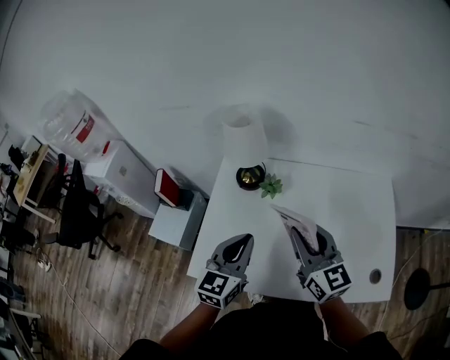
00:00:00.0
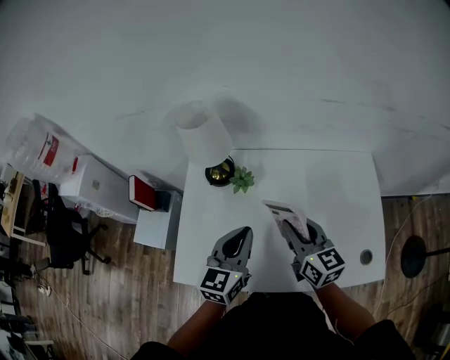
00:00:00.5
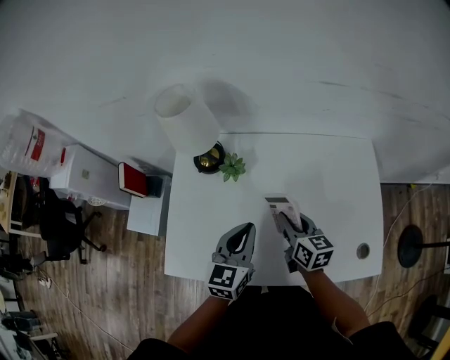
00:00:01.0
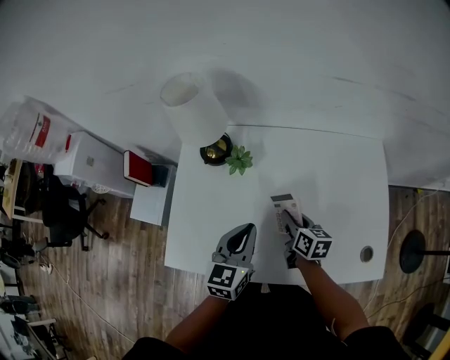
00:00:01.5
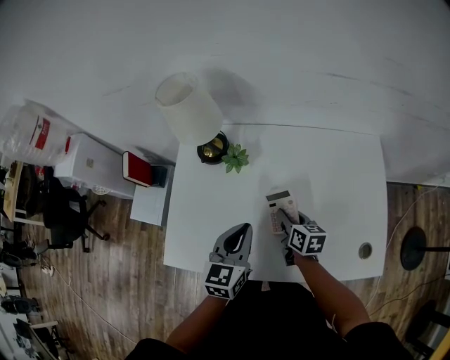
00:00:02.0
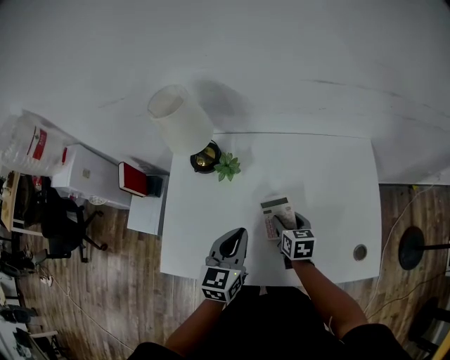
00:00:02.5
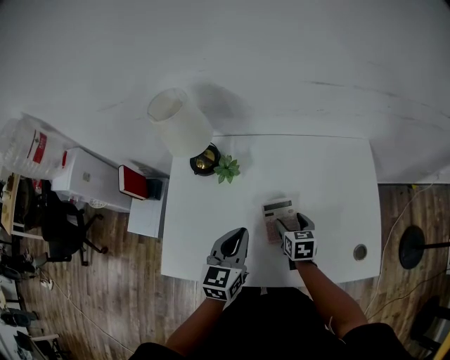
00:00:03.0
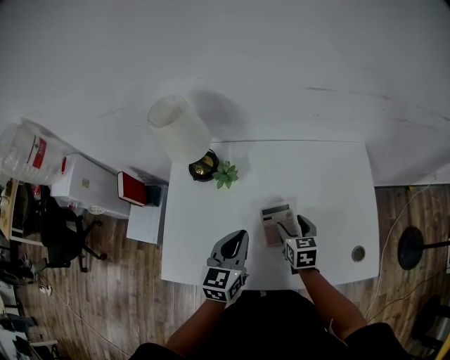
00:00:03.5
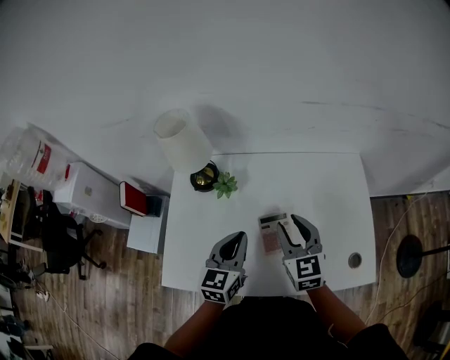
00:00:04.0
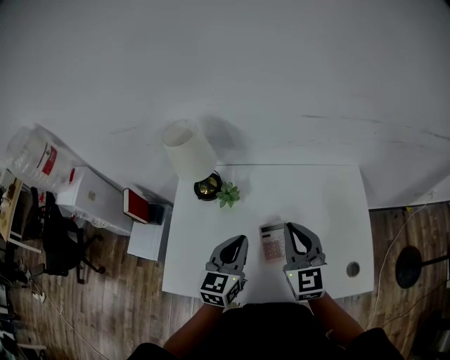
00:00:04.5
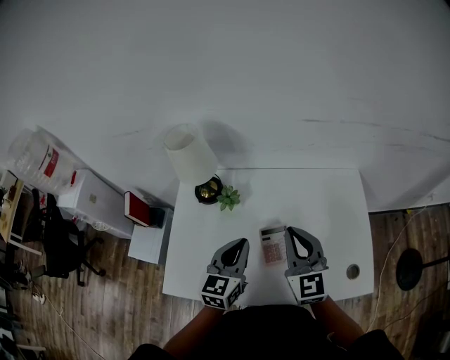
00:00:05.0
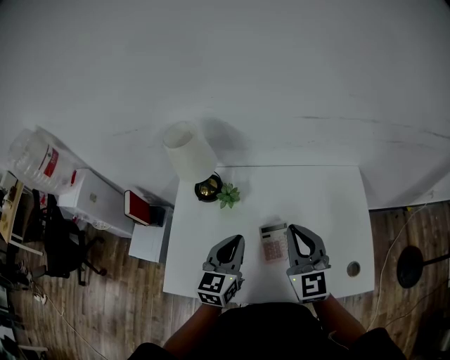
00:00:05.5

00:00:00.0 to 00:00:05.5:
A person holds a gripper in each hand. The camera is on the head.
00:00:00.0 to 00:00:02.0: The left gripper shifts about 15 cm to the right and downward. The right gripper shifts approximately 25 cm downward, and points its fingers approximately 30 degrees further downward.
00:00:02.0 to 00:00:03.5: The right gripper shifts by approximately 5 cm, rotates approximately 20 degrees, and opens up.
00:00:03.5 to 00:00:05.5: The left gripper is displaced upward by some 5 cm. Meanwhile the right gripper heads upward, covering some 25 cm, points its fingers approximately 40 degrees further upward, and closes.

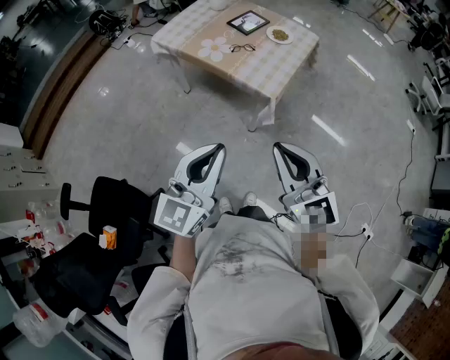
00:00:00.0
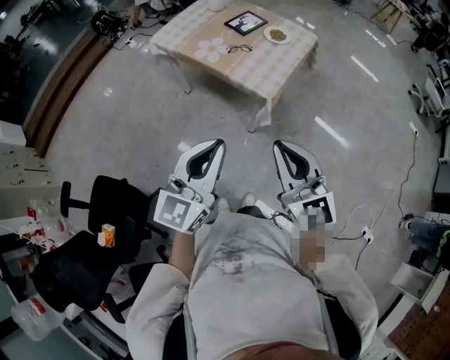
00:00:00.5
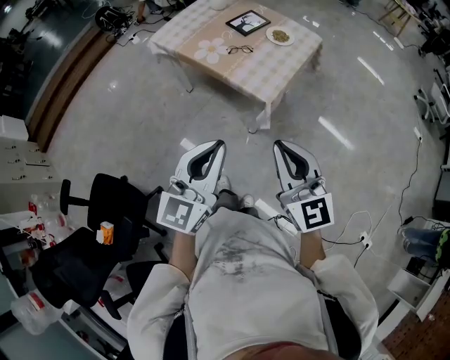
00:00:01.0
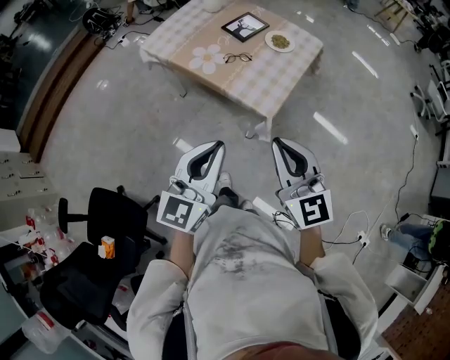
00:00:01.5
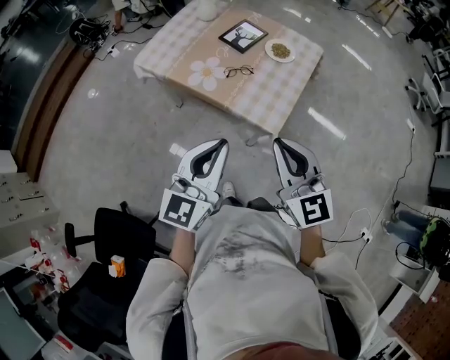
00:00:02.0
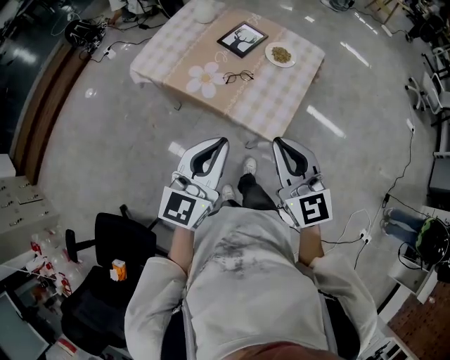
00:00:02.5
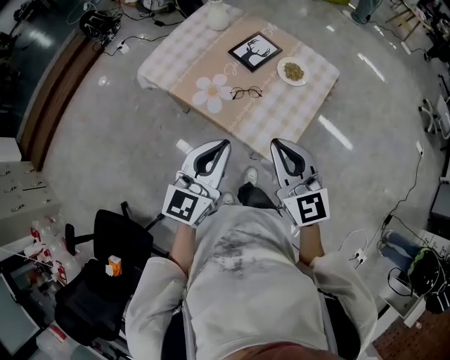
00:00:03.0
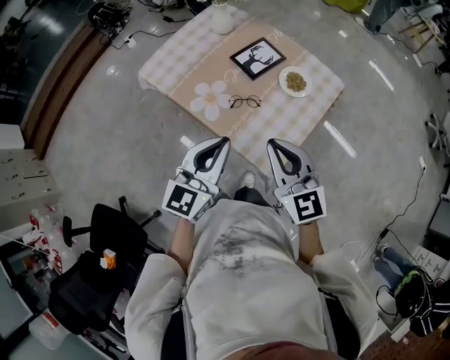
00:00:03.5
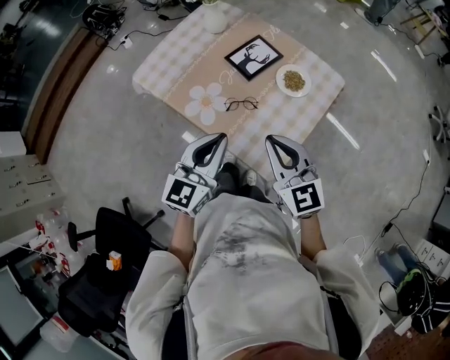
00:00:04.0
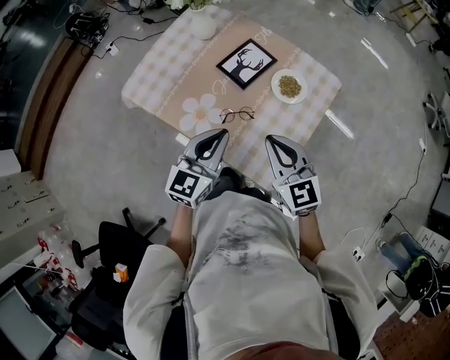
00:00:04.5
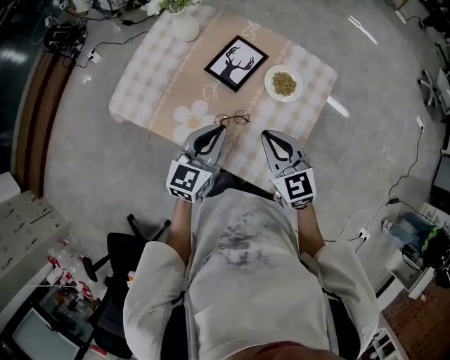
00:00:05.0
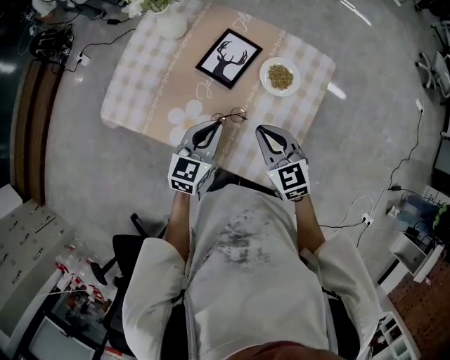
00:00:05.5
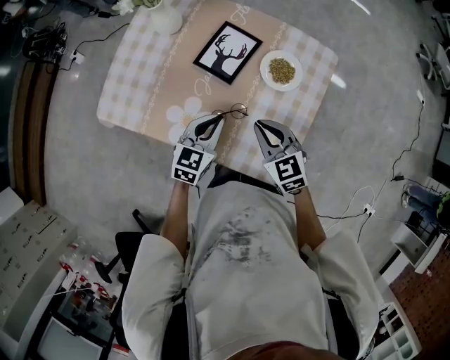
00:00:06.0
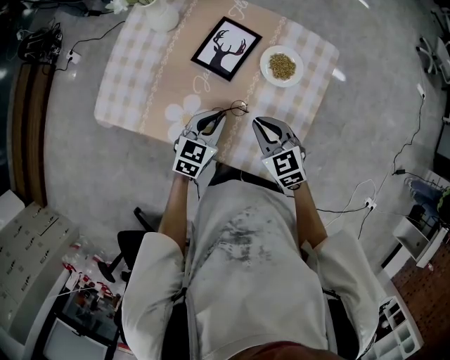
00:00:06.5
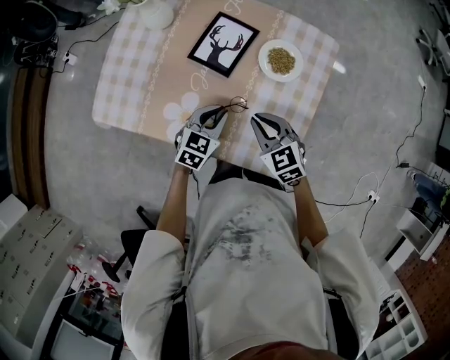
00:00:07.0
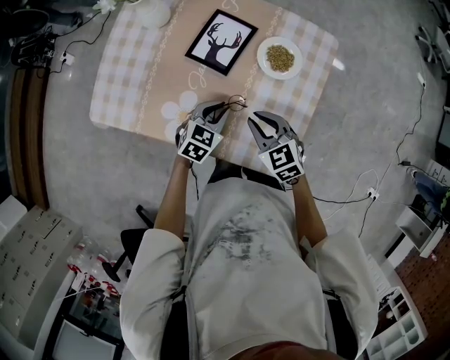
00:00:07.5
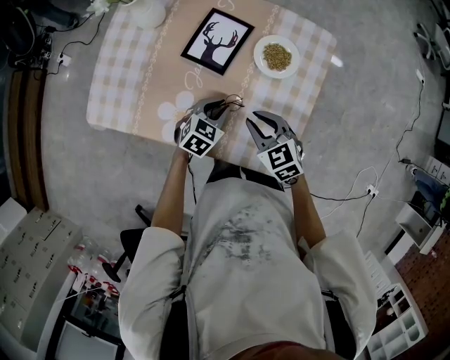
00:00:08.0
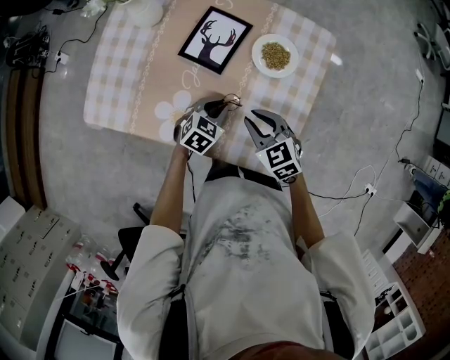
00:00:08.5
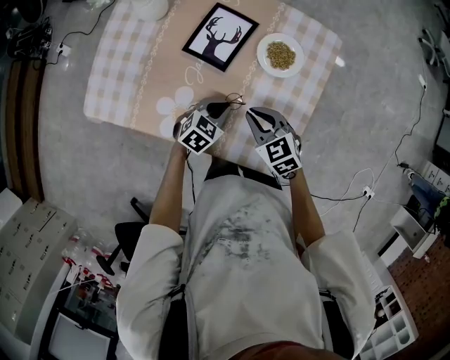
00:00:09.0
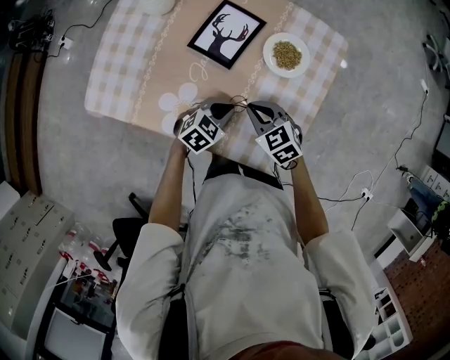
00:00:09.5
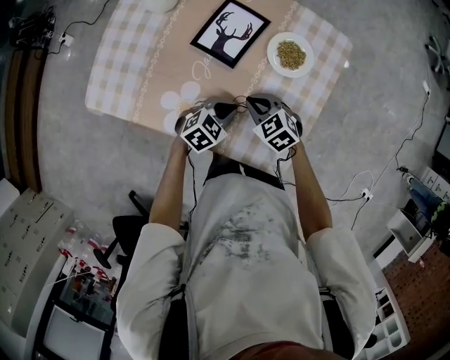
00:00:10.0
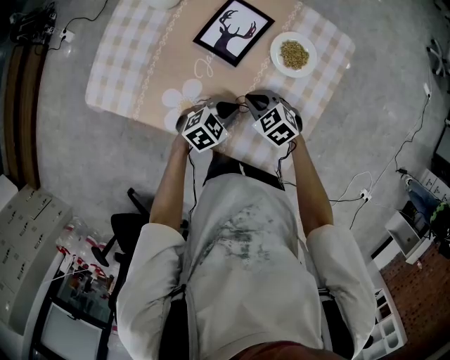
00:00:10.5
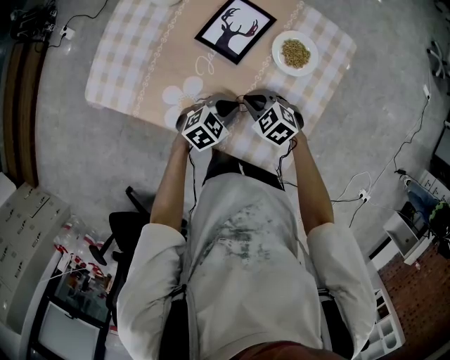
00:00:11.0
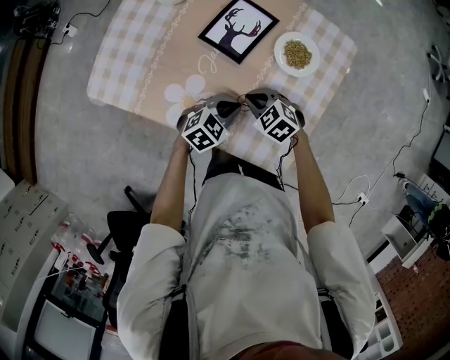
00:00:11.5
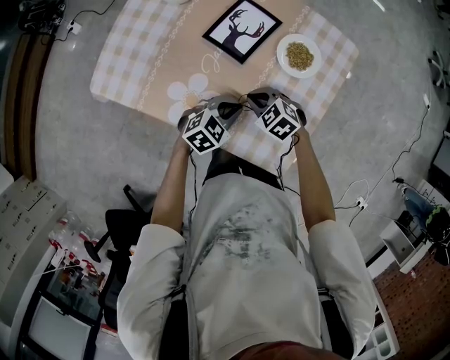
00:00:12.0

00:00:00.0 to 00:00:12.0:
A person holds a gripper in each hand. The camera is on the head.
00:00:00.0 to 00:00:02.0: The grippers both shift forward by about 20 cm.
00:00:02.0 to 00:00:04.0: Both grippers move forward, roughly 20 cm.
00:00:04.0 to 00:00:06.0: Both grippers travel together downward and forward, some 25 cm. The left gripper changes its angle by about 30 degrees. Meanwhile the right gripper swivels approximately 20 degrees.
00:00:06.0 to 00:00:08.0: The left gripper heads downward, covering about 10 cm, and changes its angle by some 20 degrees, while the right gripper heads downward, covering about 5 cm.
00:00:08.0 to 00:00:10.0: The right gripper moves downward, about 5 cm.
00:00:10.0 to 00:00:12.0: The grippers move only a little.

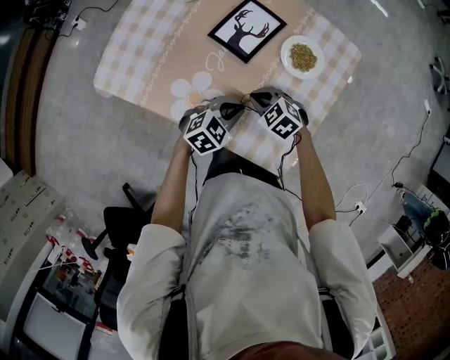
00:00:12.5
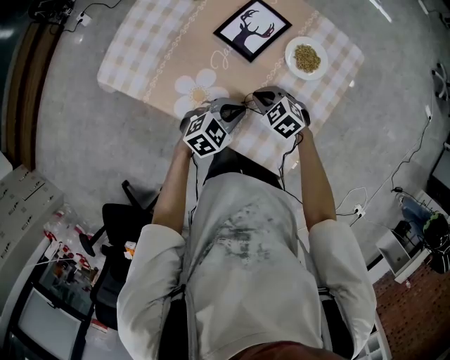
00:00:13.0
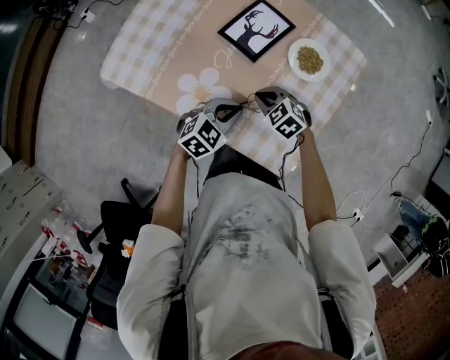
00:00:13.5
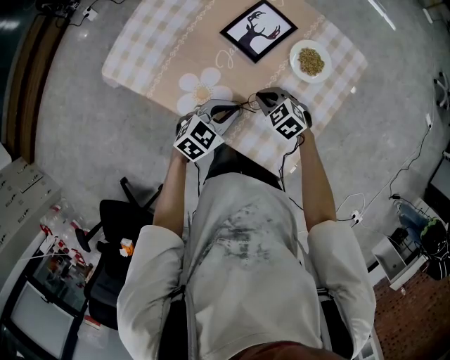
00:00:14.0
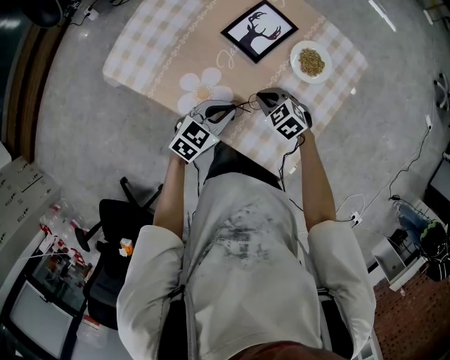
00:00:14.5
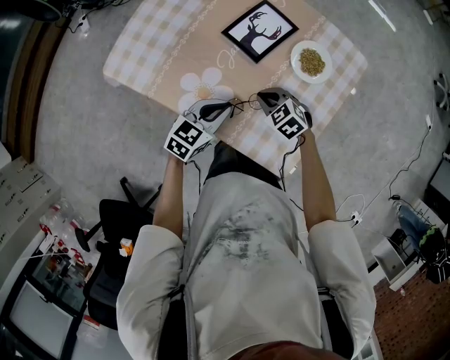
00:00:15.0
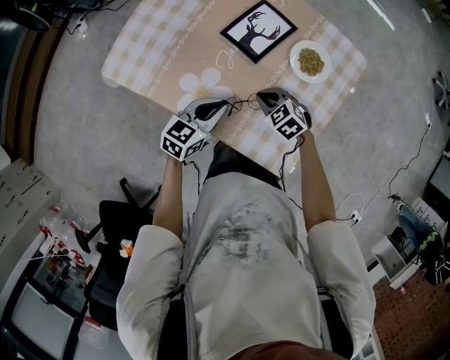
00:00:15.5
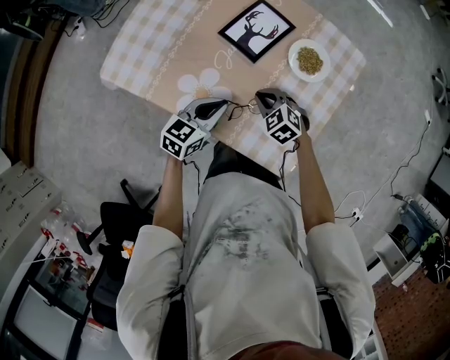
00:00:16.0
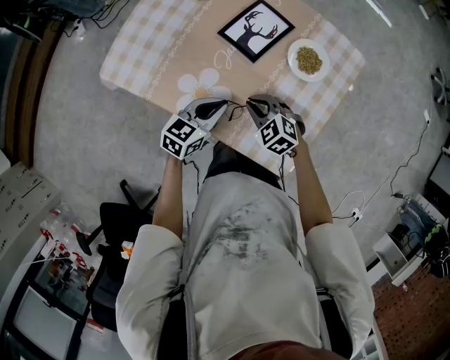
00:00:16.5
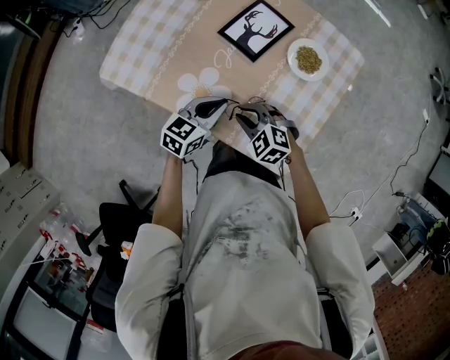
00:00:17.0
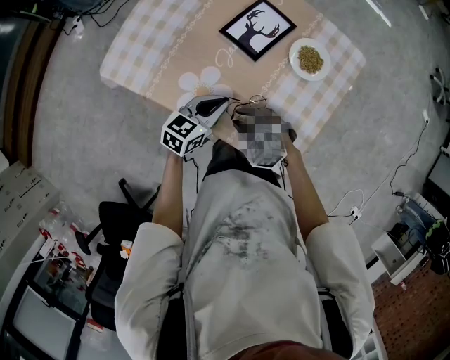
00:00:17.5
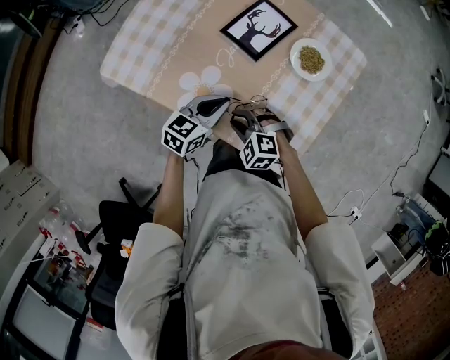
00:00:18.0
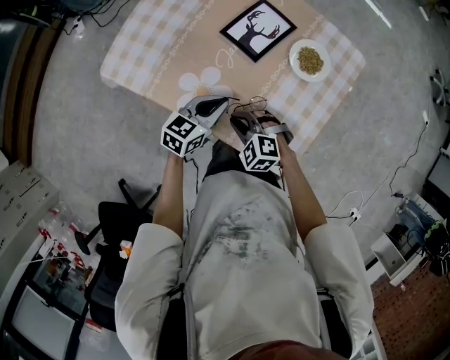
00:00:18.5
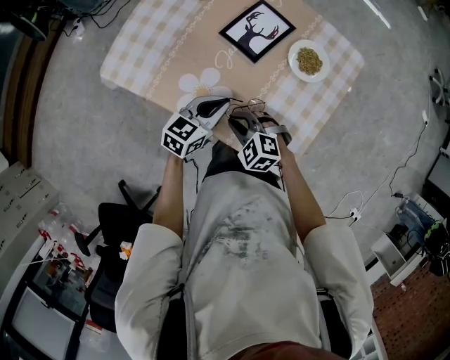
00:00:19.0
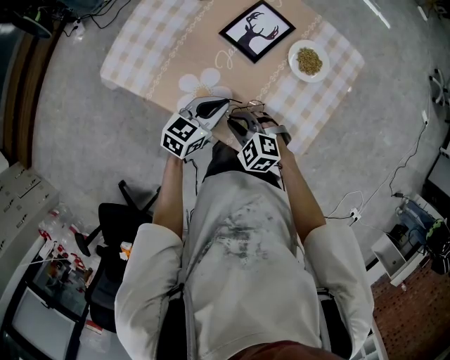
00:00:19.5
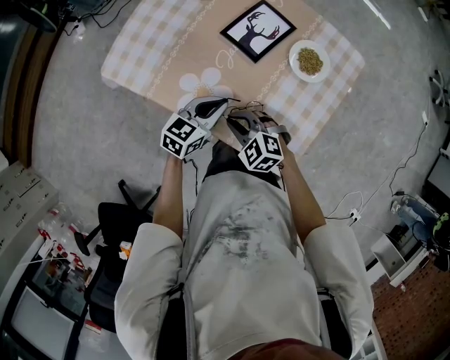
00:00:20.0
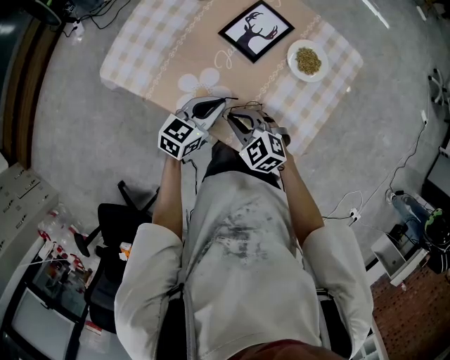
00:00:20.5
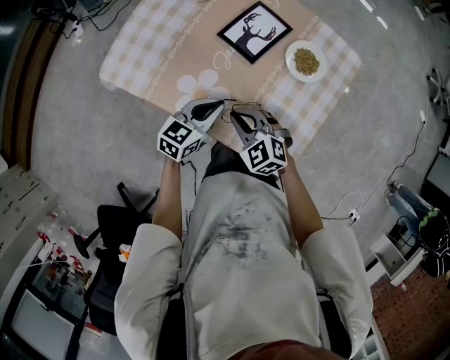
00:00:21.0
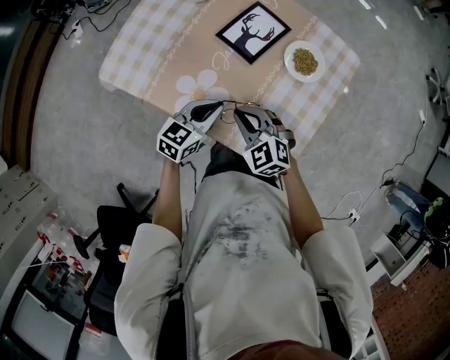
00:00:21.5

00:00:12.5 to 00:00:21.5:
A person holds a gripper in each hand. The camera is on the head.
00:00:12.5 to 00:00:14.5: The left gripper ends up approximately 5 cm from where it was.
00:00:14.5 to 00:00:17.0: The right gripper shifts about 10 cm backward and to the left.
00:00:17.0 to 00:00:19.5: The grippers move only a little.
00:00:19.5 to 00:00:21.5: The right gripper heads upward, covering roughly 5 cm.
